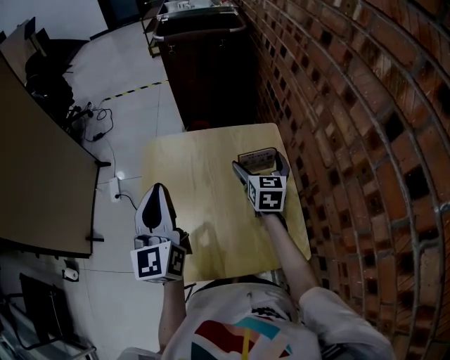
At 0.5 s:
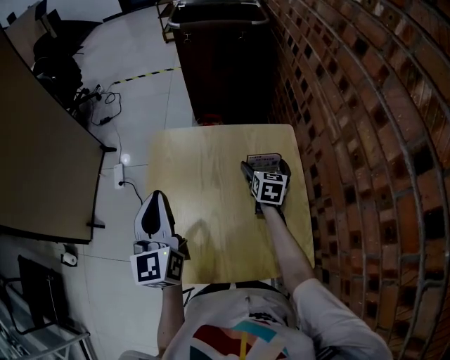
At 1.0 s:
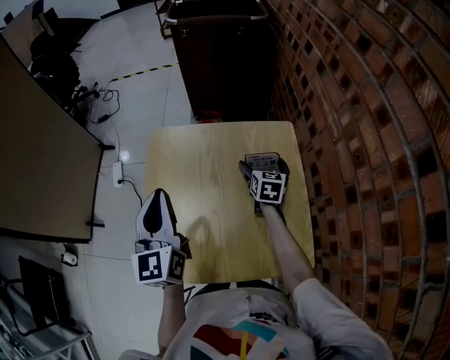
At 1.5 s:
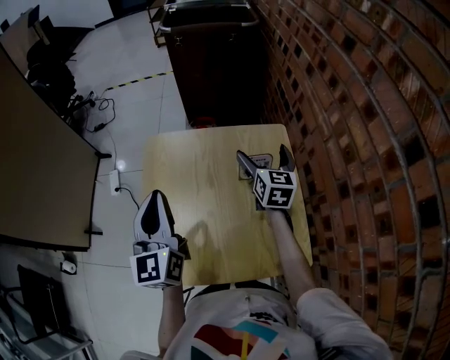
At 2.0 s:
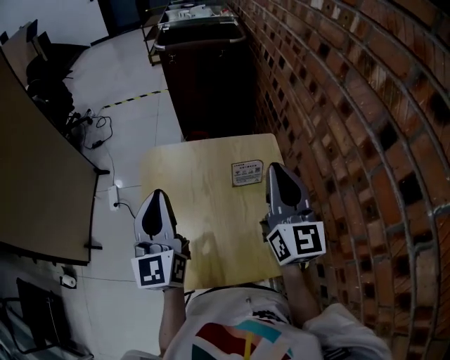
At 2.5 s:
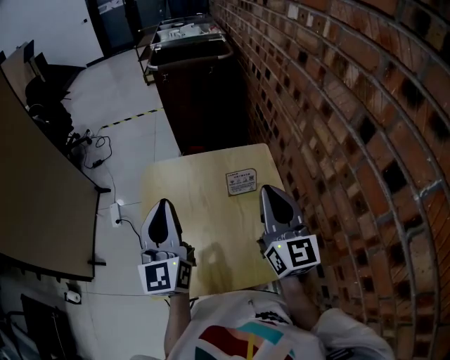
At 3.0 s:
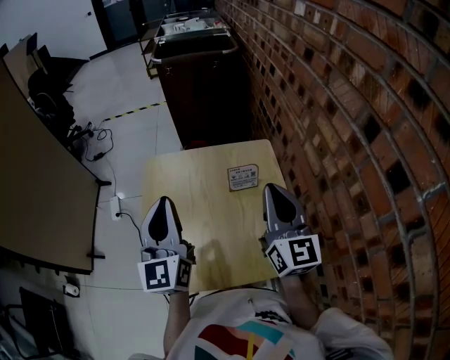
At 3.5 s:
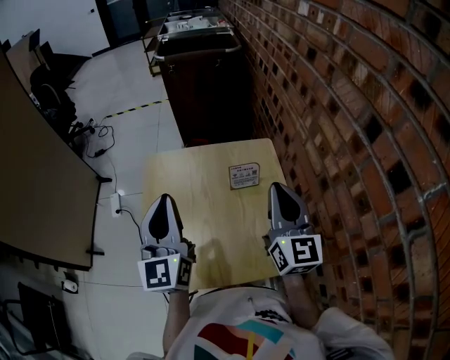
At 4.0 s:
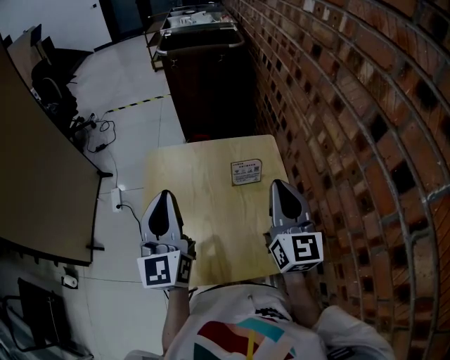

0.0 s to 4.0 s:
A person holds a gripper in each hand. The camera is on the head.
0.0 to 2.0 s: The right gripper goes roughly 20 cm upward and backward, swivels about 30 degrees, and closes its fingers.
2.0 to 4.0 s: The right gripper shifts by roughly 5 cm.

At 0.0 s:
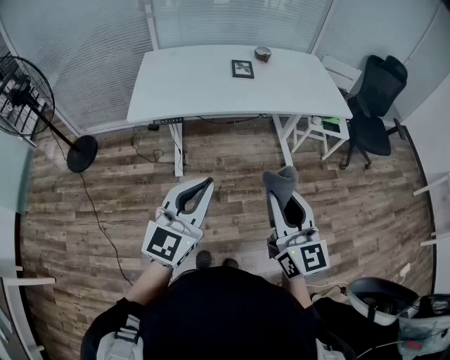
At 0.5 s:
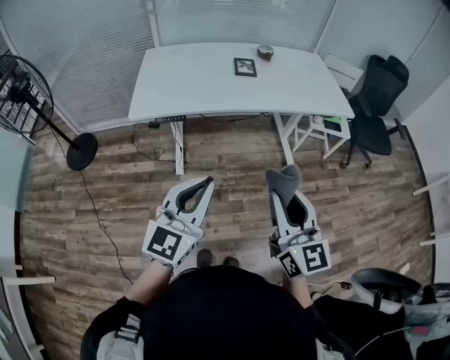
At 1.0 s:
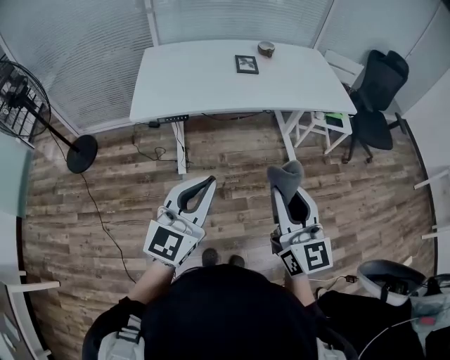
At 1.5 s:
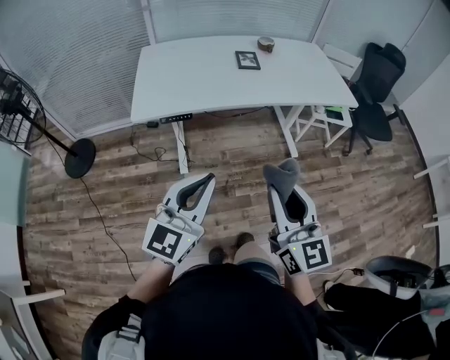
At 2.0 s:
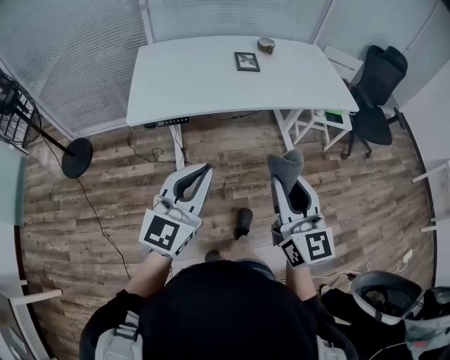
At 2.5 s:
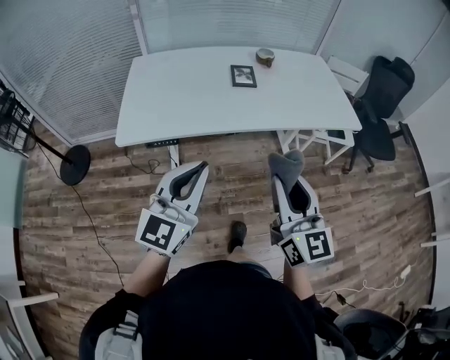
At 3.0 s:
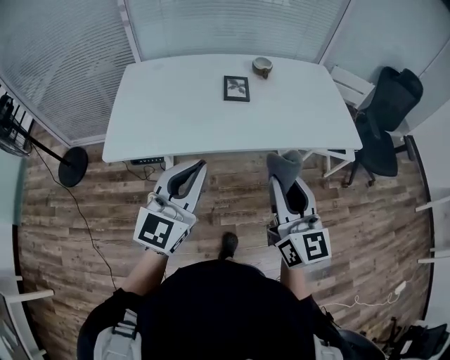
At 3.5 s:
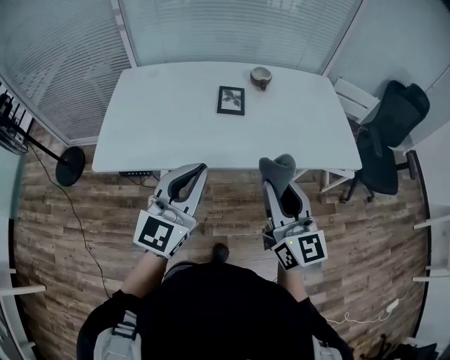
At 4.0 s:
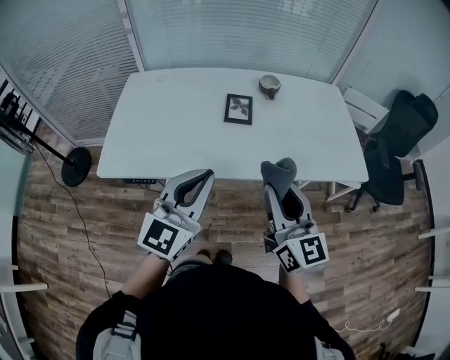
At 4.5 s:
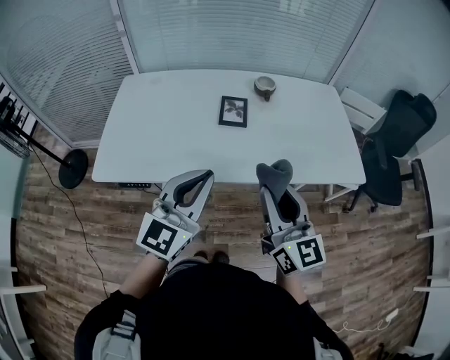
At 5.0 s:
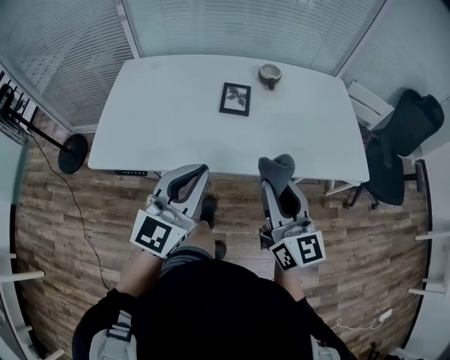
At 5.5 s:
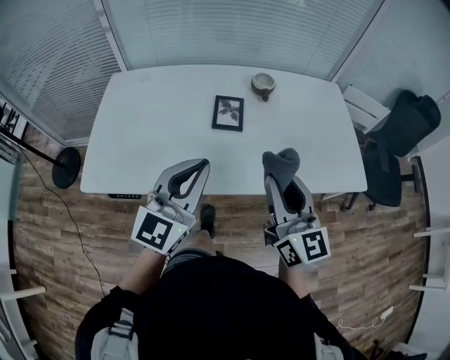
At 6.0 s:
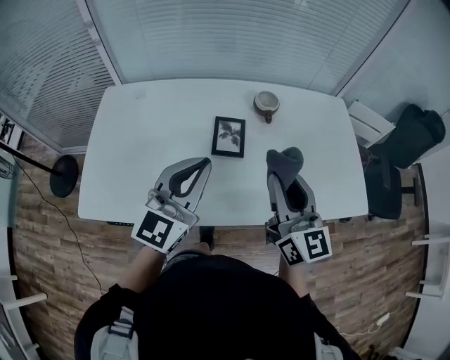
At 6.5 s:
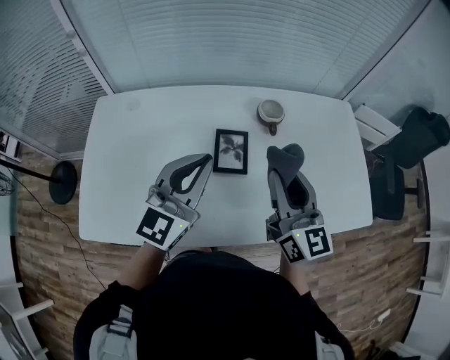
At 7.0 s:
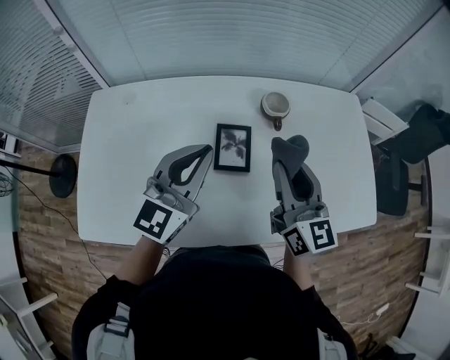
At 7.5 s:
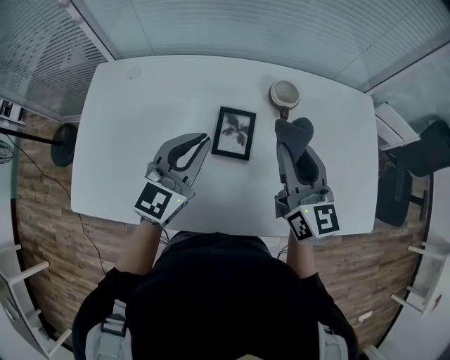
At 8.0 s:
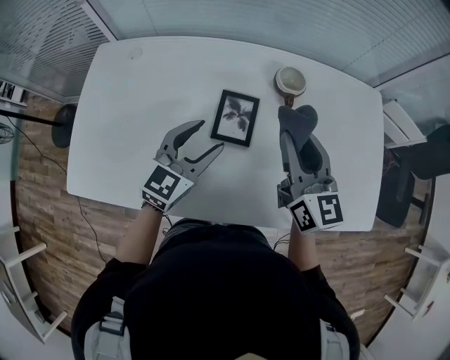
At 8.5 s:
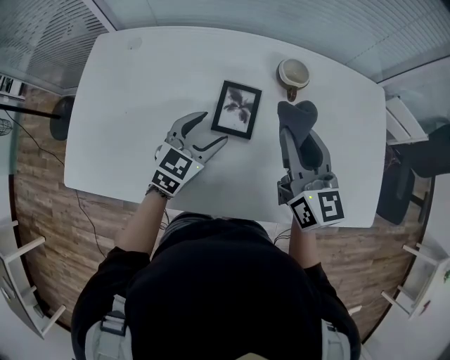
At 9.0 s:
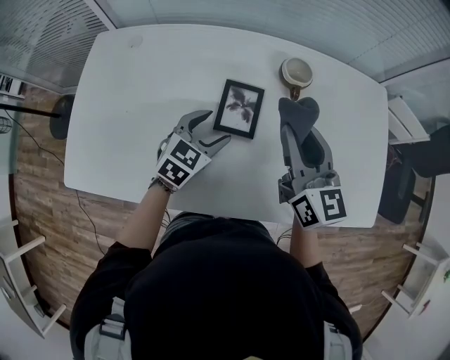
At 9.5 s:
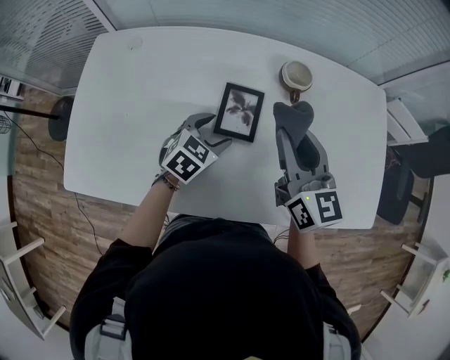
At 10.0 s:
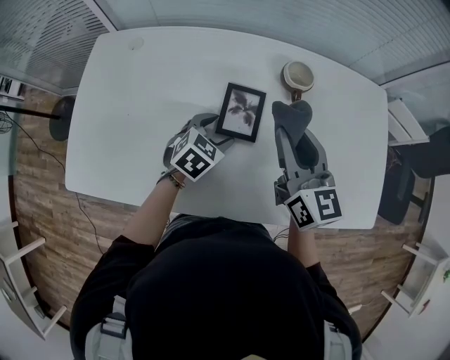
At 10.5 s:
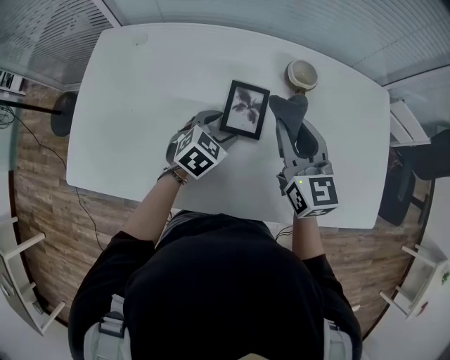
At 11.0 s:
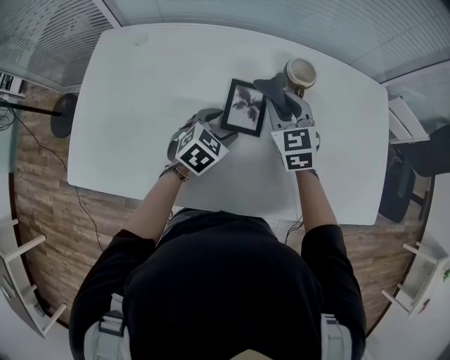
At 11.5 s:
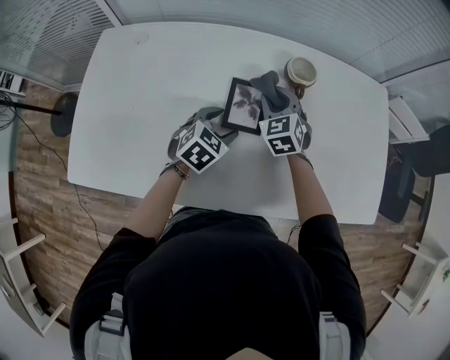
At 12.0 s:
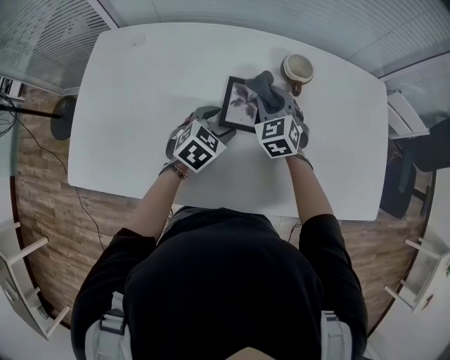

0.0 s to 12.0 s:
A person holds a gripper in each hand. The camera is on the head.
0.0 to 2.0 s: The two grippers go approximately 10 cm to the left and forward.
2.0 to 4.0 s: The right gripper heads forward, covering roughly 30 cm; the left gripper shifts roughly 30 cm forward and to the right.
4.0 to 6.0 s: Both grippers move forward, about 20 cm.
6.0 to 8.0 s: The left gripper heads downward and forward, covering some 20 cm, changes its angle by approximately 20 degrees, and opens; the right gripper heads forward, covering approximately 15 cm.
8.0 to 10.0 s: The left gripper moves downward, about 10 cm, and angles its fingers downward, by about 30 degrees.
10.0 to 12.0 s: The right gripper shifts about 20 cm downward and forward, and changes its angle by approximately 50 degrees.

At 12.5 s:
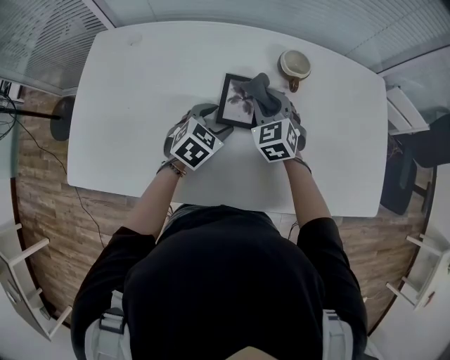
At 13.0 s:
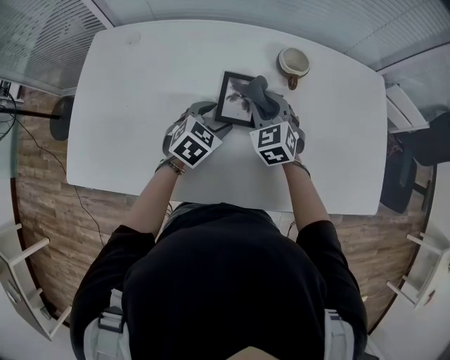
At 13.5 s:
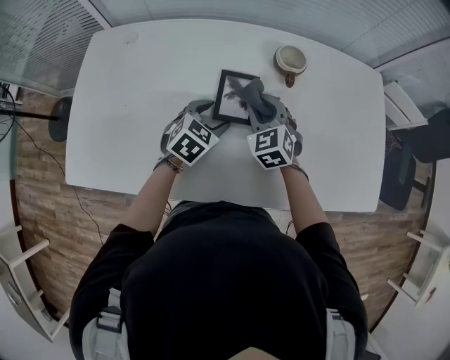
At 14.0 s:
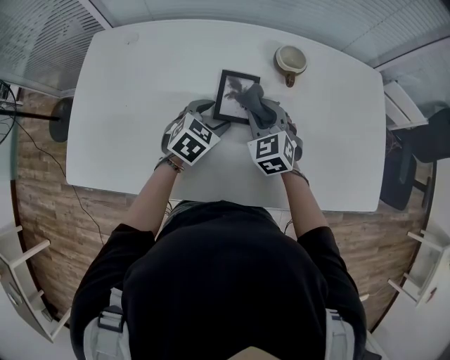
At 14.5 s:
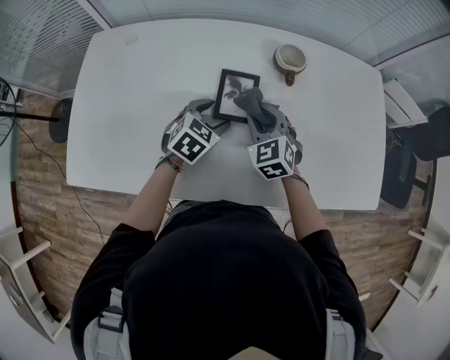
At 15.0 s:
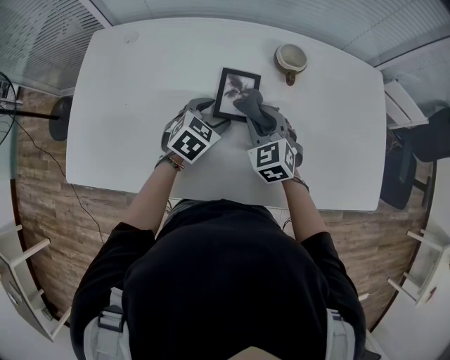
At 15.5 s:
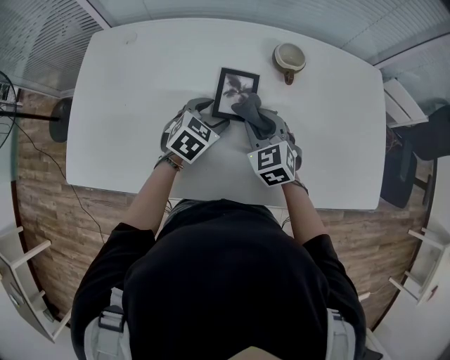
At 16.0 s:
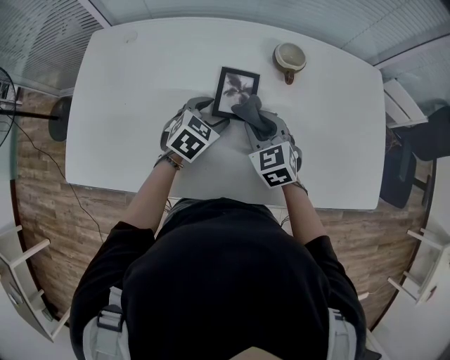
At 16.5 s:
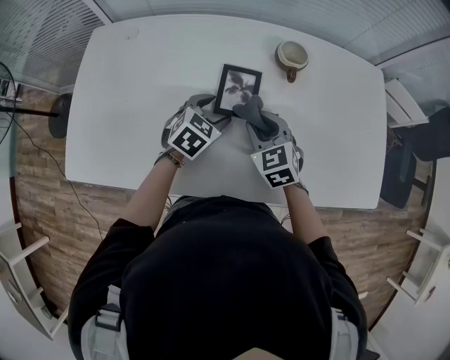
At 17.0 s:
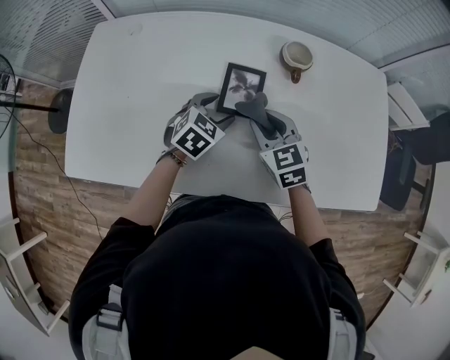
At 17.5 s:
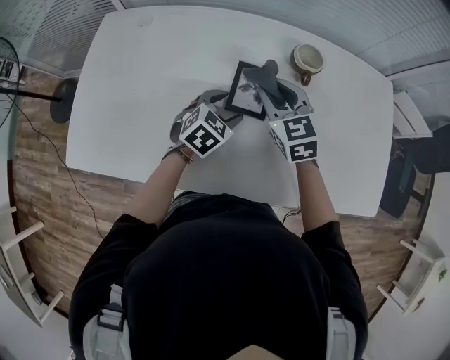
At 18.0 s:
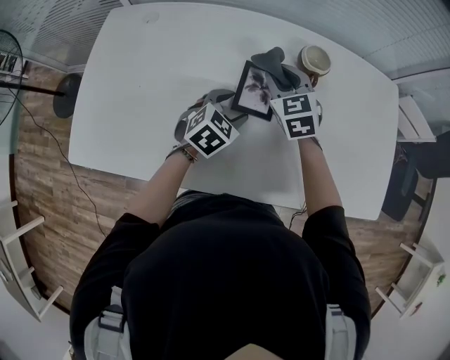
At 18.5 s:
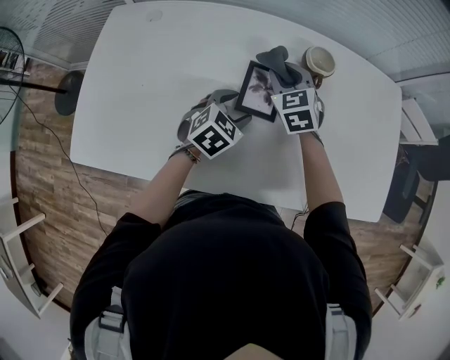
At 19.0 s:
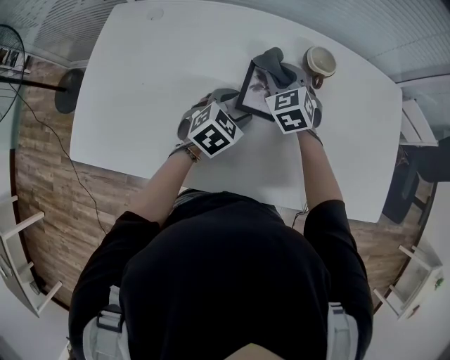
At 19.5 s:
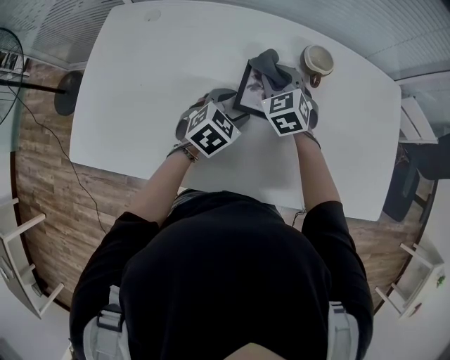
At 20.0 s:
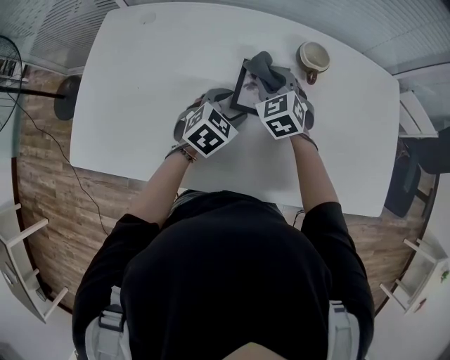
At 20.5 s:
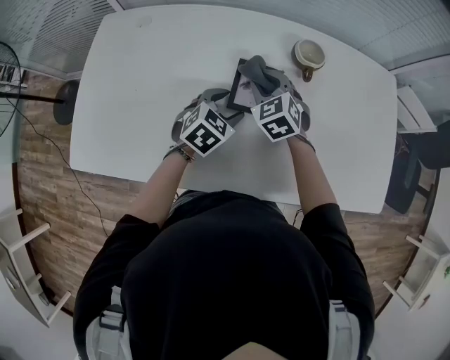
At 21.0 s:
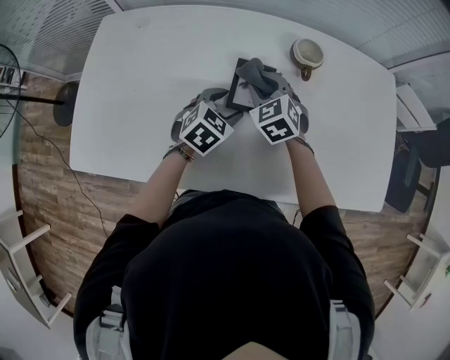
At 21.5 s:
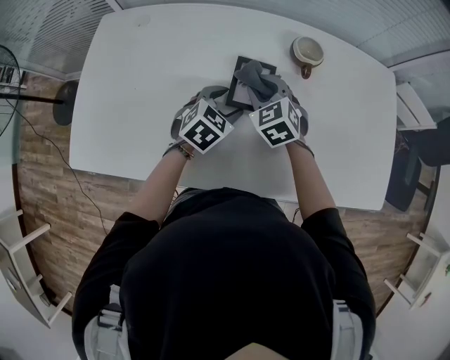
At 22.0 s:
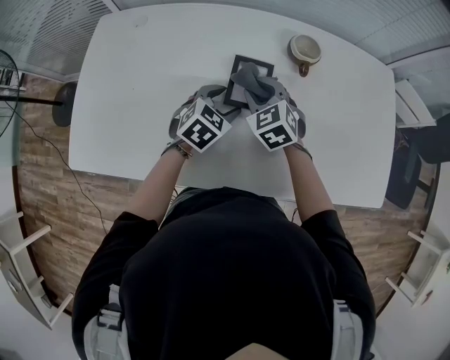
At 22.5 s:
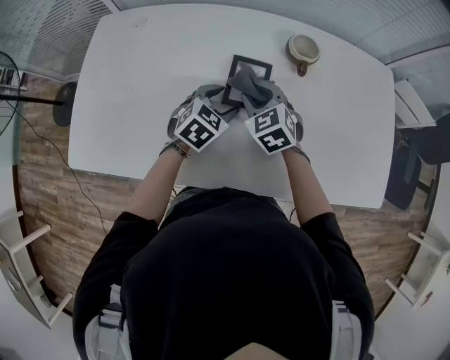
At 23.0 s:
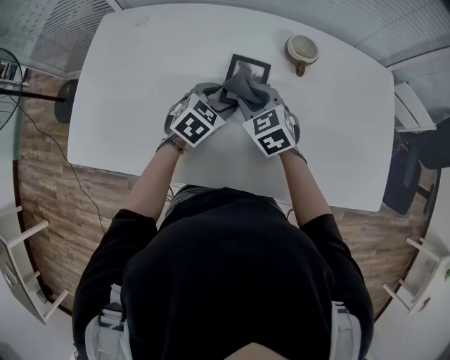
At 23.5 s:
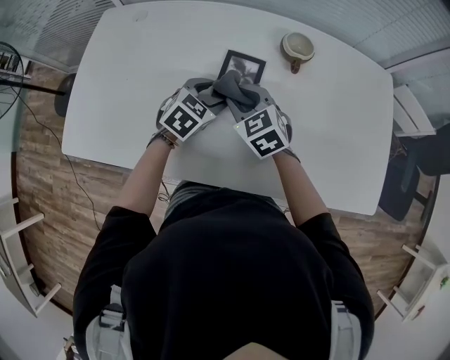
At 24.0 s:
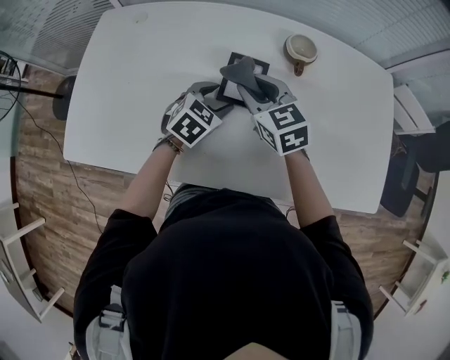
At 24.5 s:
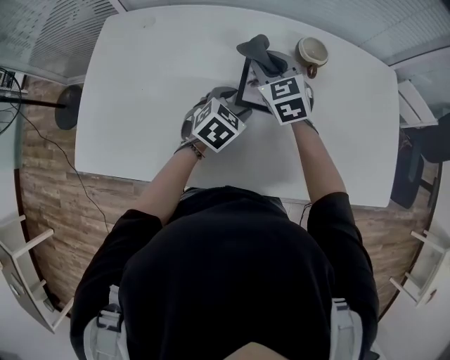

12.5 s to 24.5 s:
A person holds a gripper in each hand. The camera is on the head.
12.5 to 14.5 s: The right gripper shifts some 5 cm backward.
14.5 to 16.5 s: The grippers make only small movements.
16.5 to 18.5 s: The right gripper travels forward by approximately 15 cm.
18.5 to 20.5 s: The right gripper moves some 5 cm.
20.5 to 22.5 s: The right gripper moves backward, about 5 cm.
22.5 to 24.5 s: The right gripper is displaced forward and upward by roughly 10 cm.
